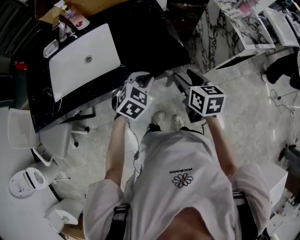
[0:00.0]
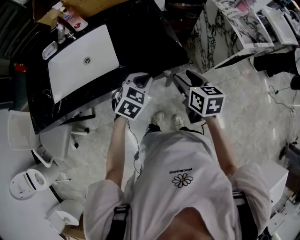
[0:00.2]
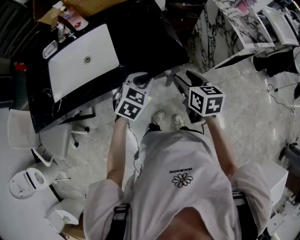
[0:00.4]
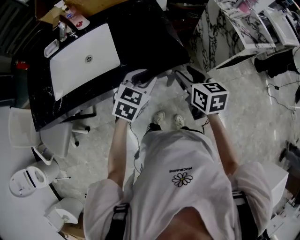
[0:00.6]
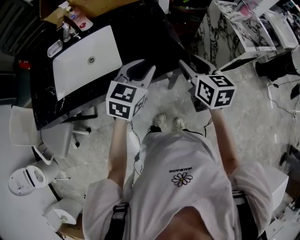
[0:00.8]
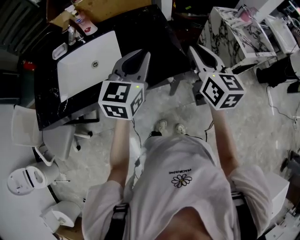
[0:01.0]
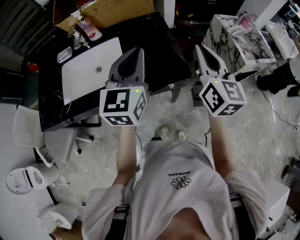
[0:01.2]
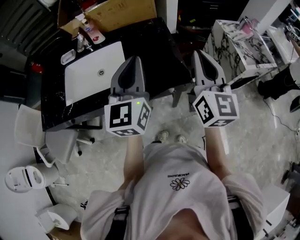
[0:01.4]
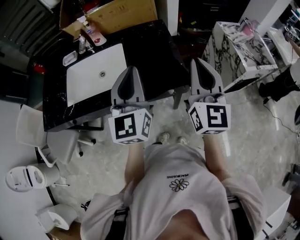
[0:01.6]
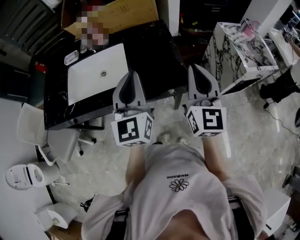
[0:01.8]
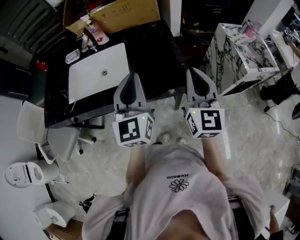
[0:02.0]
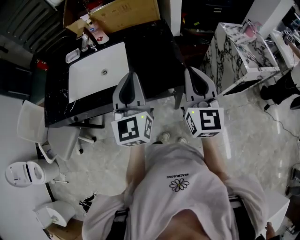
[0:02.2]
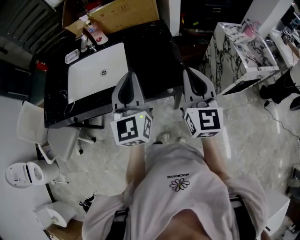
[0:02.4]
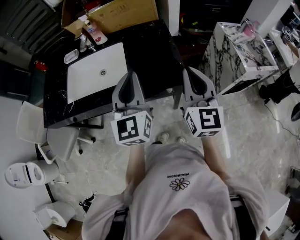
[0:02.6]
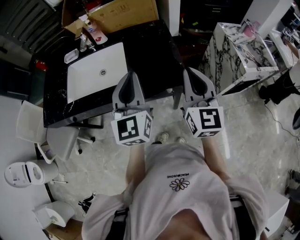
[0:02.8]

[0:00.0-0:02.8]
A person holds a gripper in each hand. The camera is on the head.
0:00.0 to 0:01.4: Both grippers move upward, roughly 25 cm. The left gripper tilts its fingers about 50 degrees upward, and opens, then closes once more. The right gripper tips its fingers upward by some 40 degrees, and closes its fingers.
0:01.4 to 0:02.8: The right gripper changes place by about 5 cm.

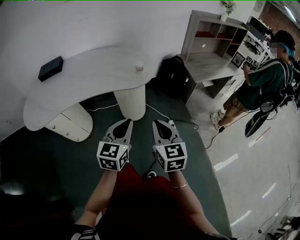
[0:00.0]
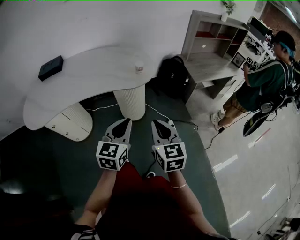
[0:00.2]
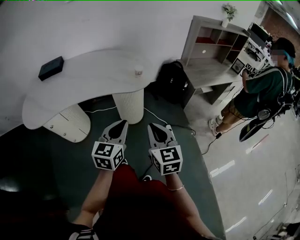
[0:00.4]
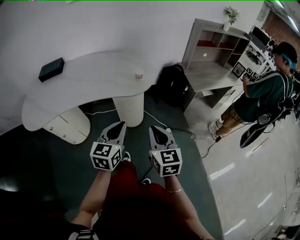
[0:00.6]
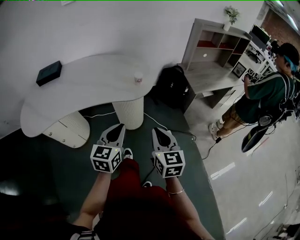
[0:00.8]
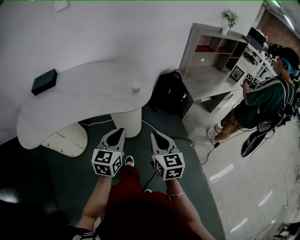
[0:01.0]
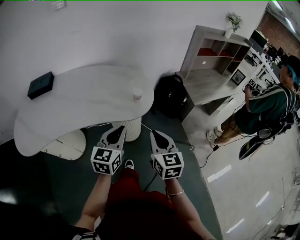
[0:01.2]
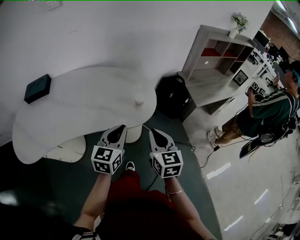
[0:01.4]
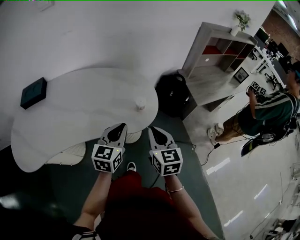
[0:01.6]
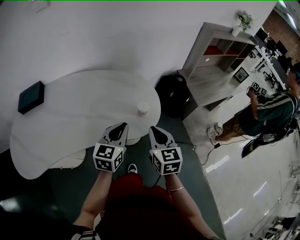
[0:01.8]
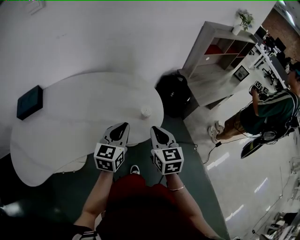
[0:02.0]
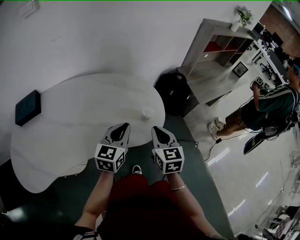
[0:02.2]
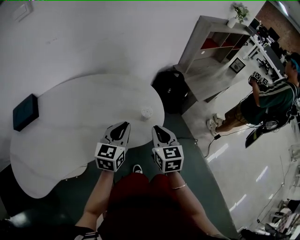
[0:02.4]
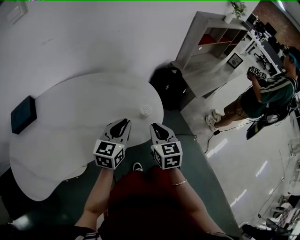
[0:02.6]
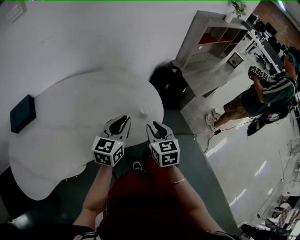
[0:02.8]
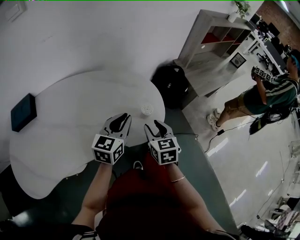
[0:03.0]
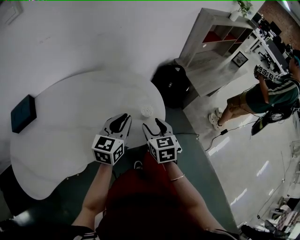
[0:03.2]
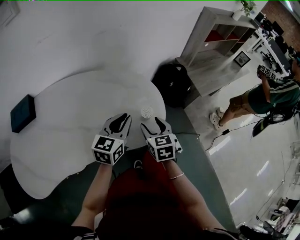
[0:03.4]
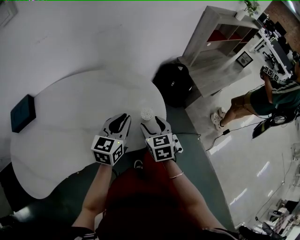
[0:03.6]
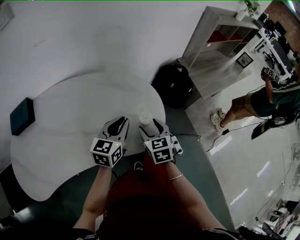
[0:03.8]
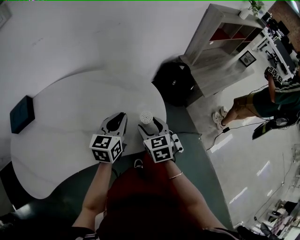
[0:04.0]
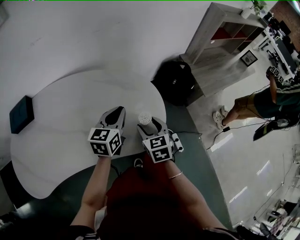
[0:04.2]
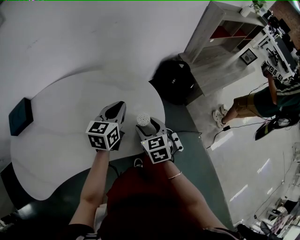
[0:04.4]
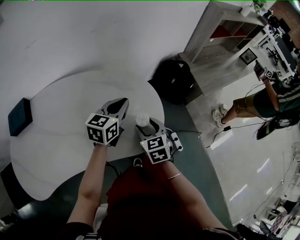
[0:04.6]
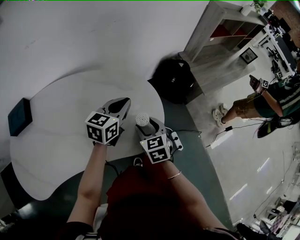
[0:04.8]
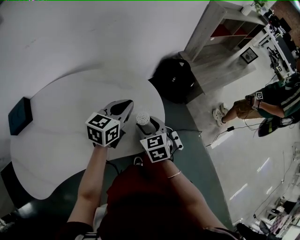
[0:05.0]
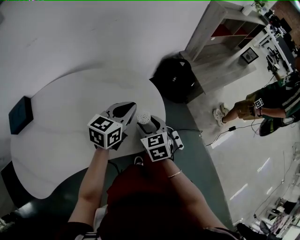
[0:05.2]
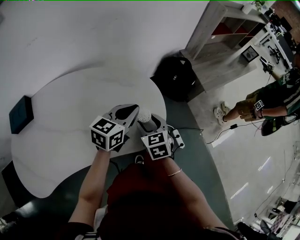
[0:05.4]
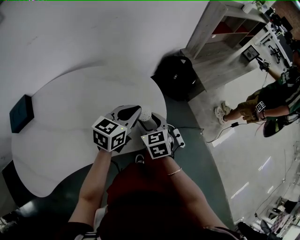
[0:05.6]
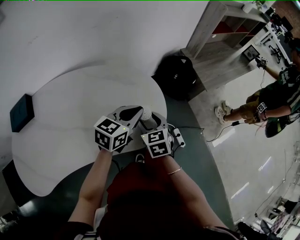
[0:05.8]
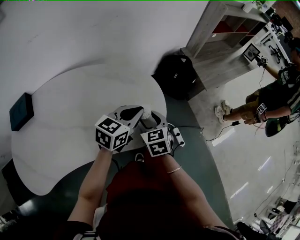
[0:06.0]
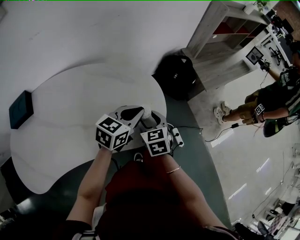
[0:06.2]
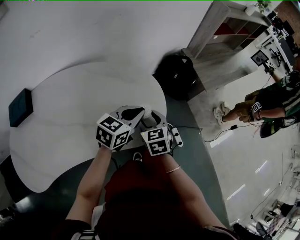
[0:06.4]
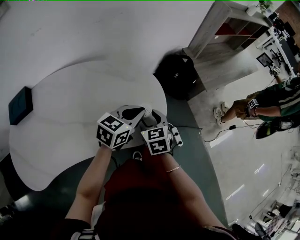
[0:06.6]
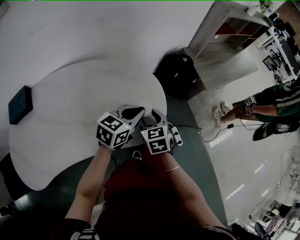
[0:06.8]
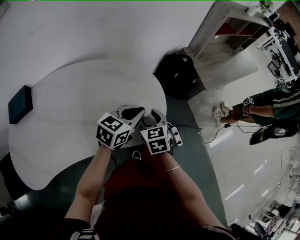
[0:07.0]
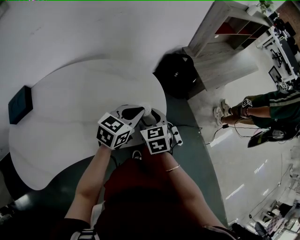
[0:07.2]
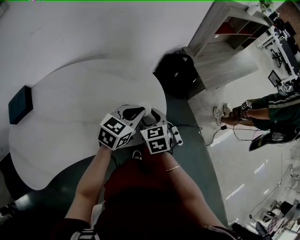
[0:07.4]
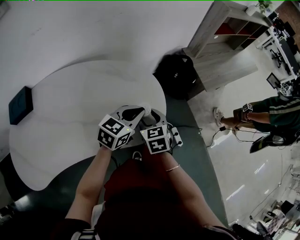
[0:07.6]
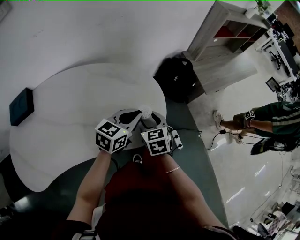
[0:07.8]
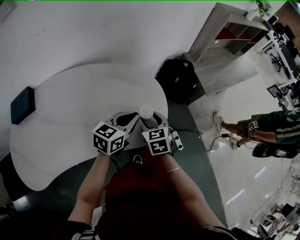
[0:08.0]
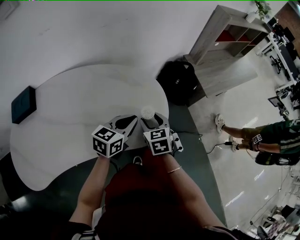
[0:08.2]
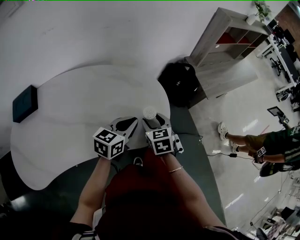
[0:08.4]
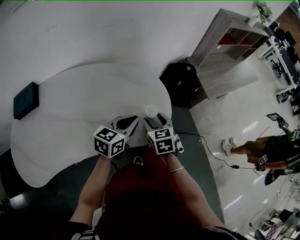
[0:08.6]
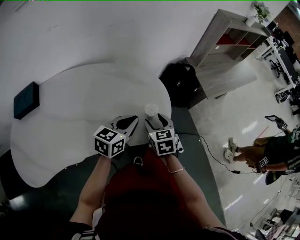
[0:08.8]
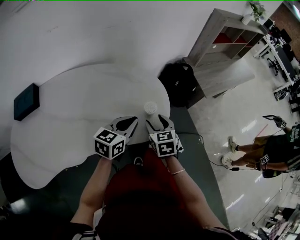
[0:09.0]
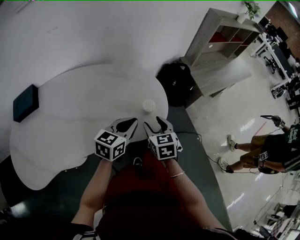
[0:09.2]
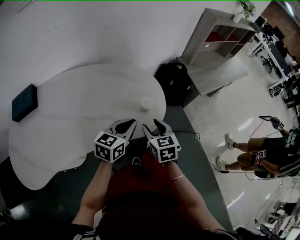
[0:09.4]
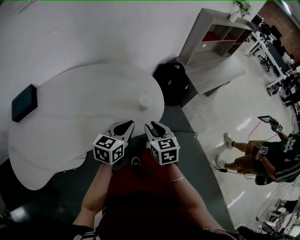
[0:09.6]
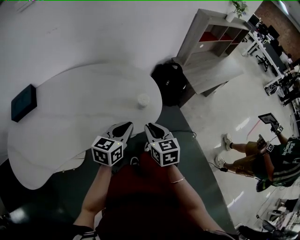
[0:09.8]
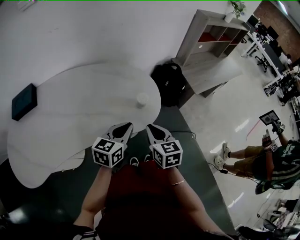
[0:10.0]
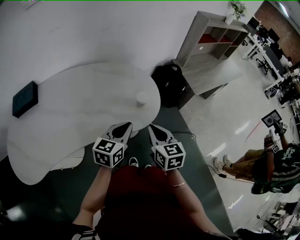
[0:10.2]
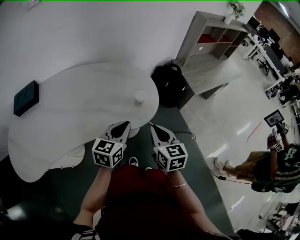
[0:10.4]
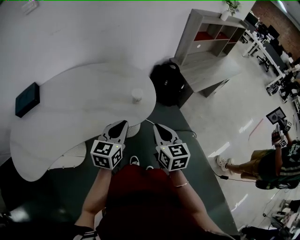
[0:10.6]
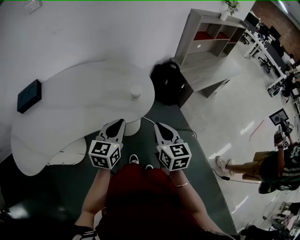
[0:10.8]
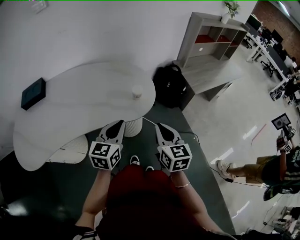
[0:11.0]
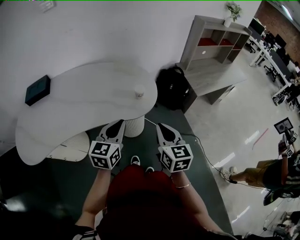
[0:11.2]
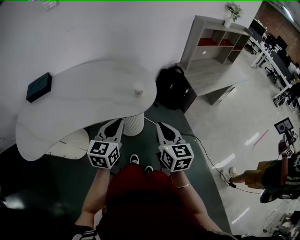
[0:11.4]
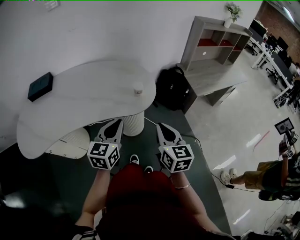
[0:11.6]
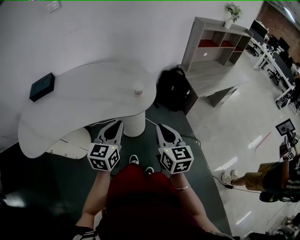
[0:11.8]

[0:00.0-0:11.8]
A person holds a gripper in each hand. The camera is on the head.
0:00.0 to 0:01.4: The two grippers go roughly 20 cm forward.
0:01.4 to 0:03.0: The left gripper goes some 15 cm forward. Meanwhile the right gripper is displaced forward, downward and to the left by some 15 cm, and opens its fingers.
0:03.0 to 0:04.4: The left gripper shifts some 10 cm forward. The right gripper moves forward, approximately 5 cm, and opens its fingers.
0:04.4 to 0:06.0: The left gripper heads to the right, covering about 10 cm, and rotates approximately 20 degrees.
0:06.0 to 0:07.4: There are only small adjustments of the grippers.
0:07.4 to 0:08.8: The left gripper heads to the left, covering some 5 cm.
0:08.8 to 0:10.4: The right gripper is displaced backward, upward and to the right by roughly 15 cm, and closes its fingers, while the left gripper moves backward, approximately 10 cm.
0:10.4 to 0:11.8: The left gripper moves backward and upward, roughly 10 cm. The right gripper travels backward, to the right and upward by some 10 cm.

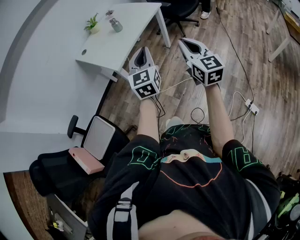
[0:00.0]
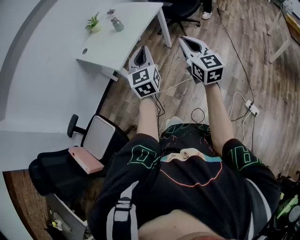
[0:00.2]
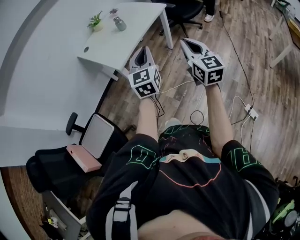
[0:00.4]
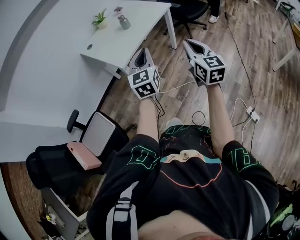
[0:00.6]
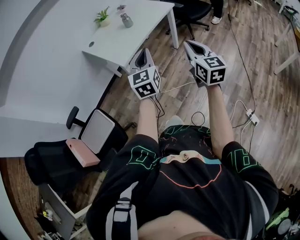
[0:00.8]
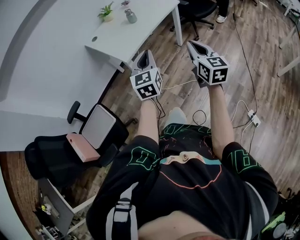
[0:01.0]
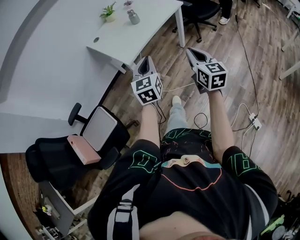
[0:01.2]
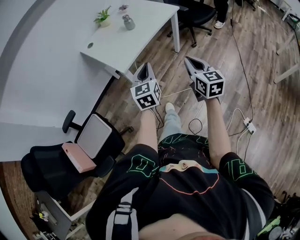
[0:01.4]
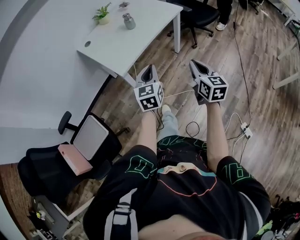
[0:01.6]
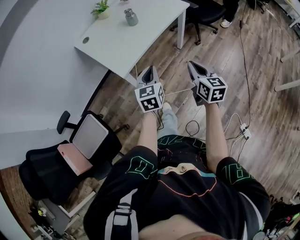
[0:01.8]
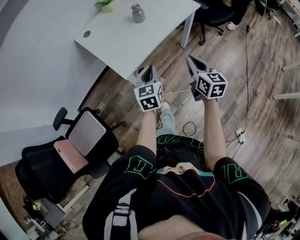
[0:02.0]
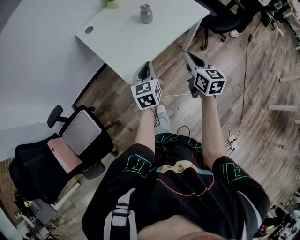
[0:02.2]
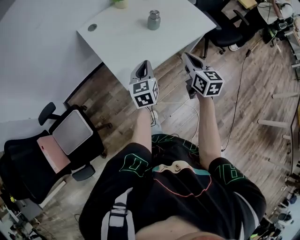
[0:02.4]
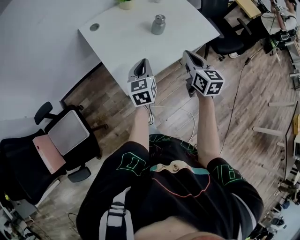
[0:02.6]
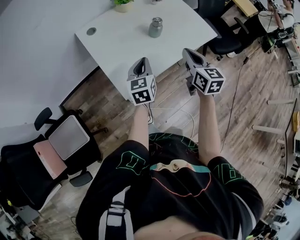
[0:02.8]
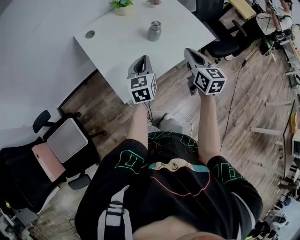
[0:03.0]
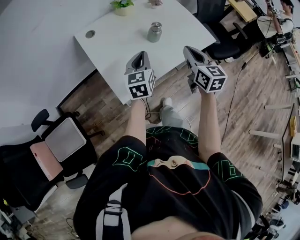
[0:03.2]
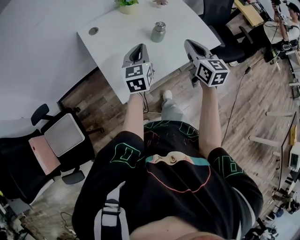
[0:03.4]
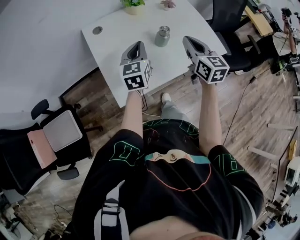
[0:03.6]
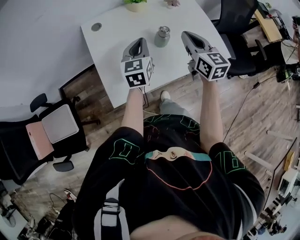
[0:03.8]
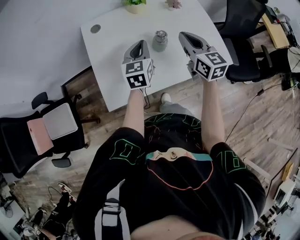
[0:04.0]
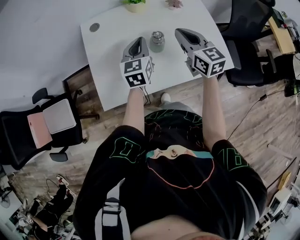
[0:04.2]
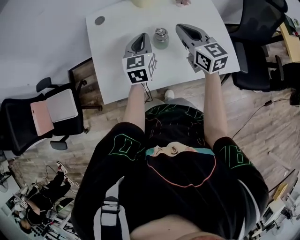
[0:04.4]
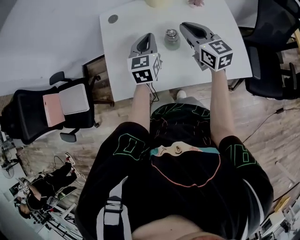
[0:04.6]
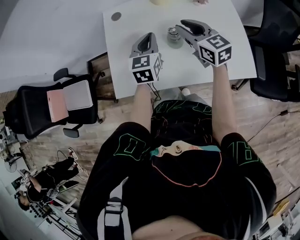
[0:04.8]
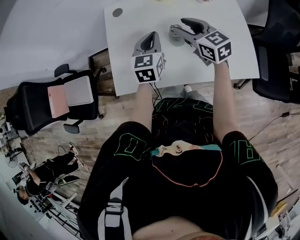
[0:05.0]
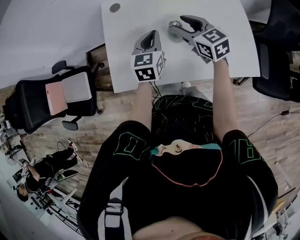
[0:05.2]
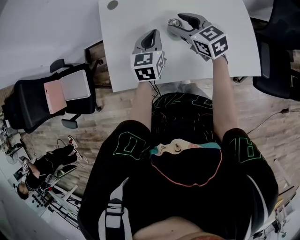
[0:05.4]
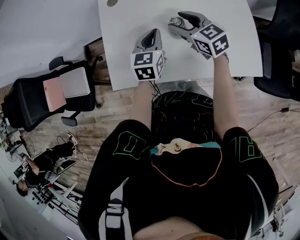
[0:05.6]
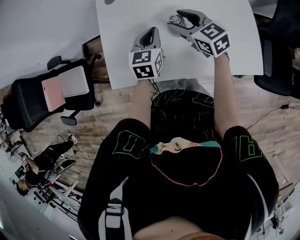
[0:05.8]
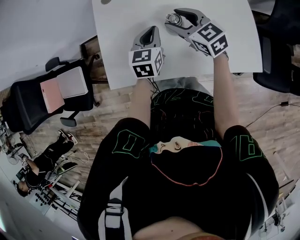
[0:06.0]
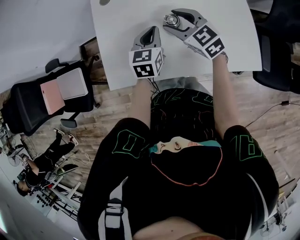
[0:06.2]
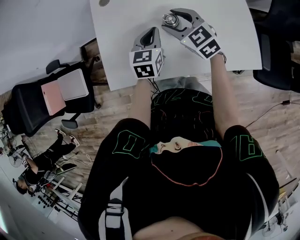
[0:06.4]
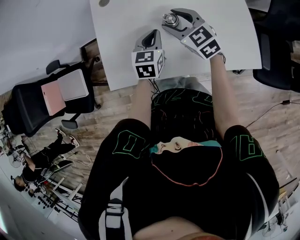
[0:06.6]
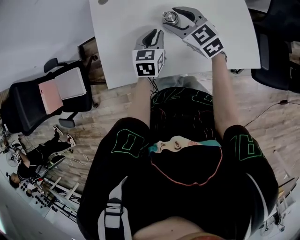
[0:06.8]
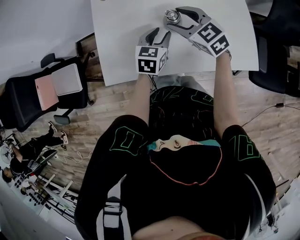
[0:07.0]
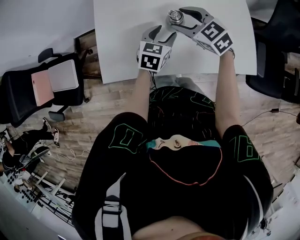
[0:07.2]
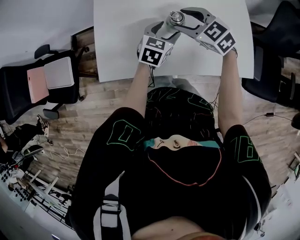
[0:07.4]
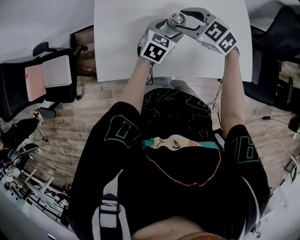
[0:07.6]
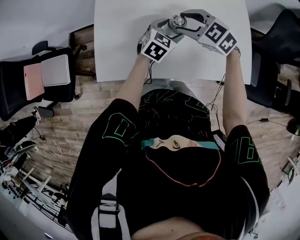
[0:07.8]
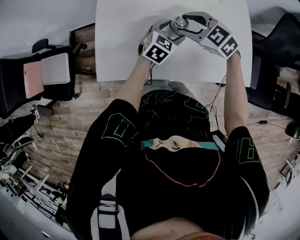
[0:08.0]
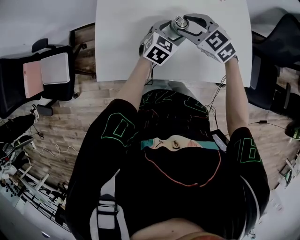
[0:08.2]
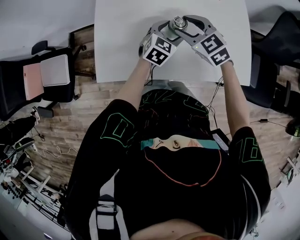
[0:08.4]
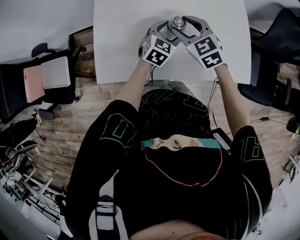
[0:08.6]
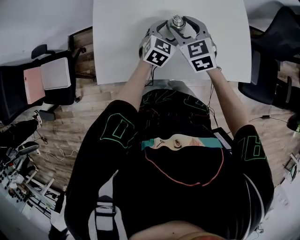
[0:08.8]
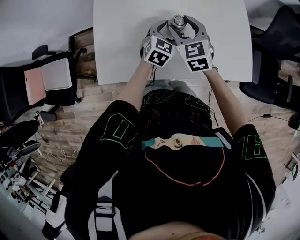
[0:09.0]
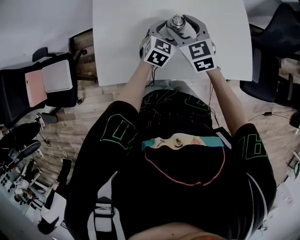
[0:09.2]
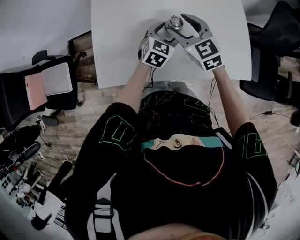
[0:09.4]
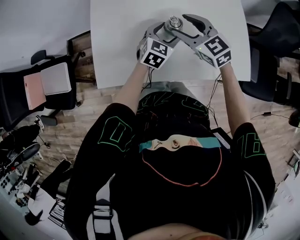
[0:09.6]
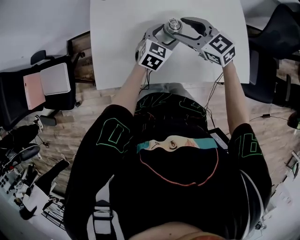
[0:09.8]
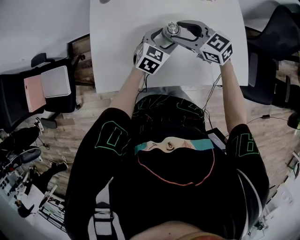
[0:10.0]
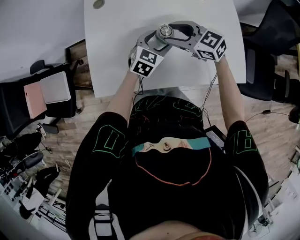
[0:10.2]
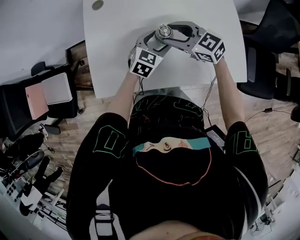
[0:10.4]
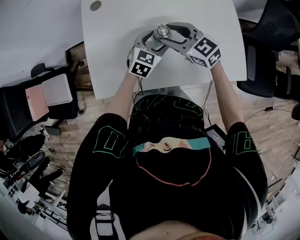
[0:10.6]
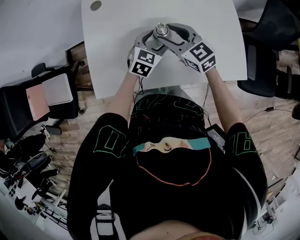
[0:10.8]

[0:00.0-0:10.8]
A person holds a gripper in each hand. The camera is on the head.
0:00.0 to 0:01.6: The right gripper is displaced forward and downward by approximately 15 cm; the left gripper is displaced downward, forward and to the left by some 15 cm.
0:01.6 to 0:03.0: Both grippers travel together forward, approximately 35 cm.
0:03.0 to 0:04.6: The left gripper ends up roughly 15 cm from where it was, and swivels about 30 degrees, while the right gripper shifts by some 25 cm, and swivels some 40 degrees.
0:04.6 to 0:06.2: The right gripper travels downward and to the left by roughly 10 cm, changes its angle by roughly 30 degrees, and opens up, while the left gripper moves downward, about 10 cm.
0:06.2 to 0:07.8: The right gripper swivels approximately 30 degrees. The left gripper heads to the right and downward, covering roughly 10 cm, changes its angle by approximately 30 degrees, and opens.
0:07.8 to 0:09.2: The right gripper turns by approximately 40 degrees.
